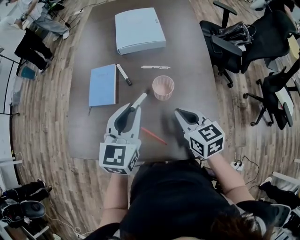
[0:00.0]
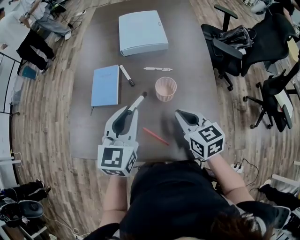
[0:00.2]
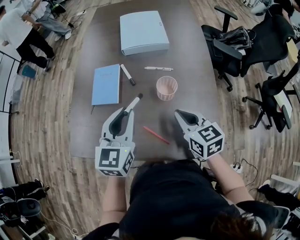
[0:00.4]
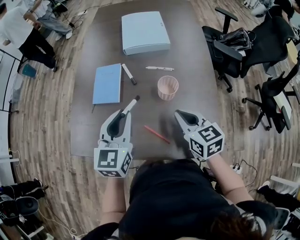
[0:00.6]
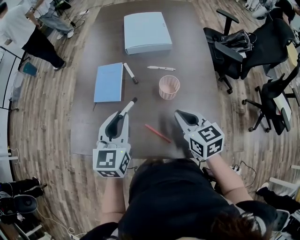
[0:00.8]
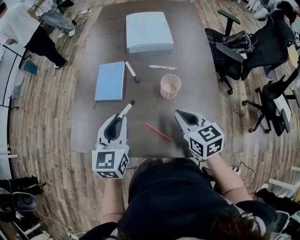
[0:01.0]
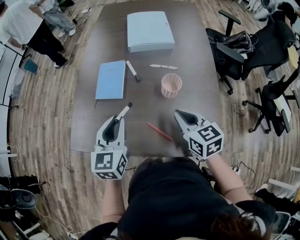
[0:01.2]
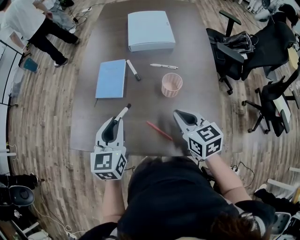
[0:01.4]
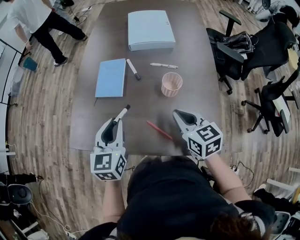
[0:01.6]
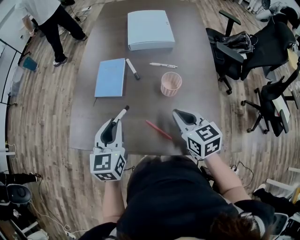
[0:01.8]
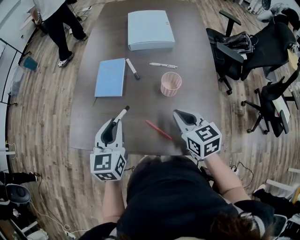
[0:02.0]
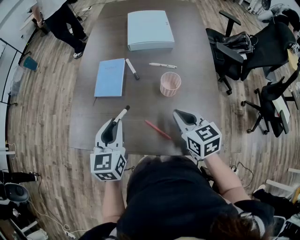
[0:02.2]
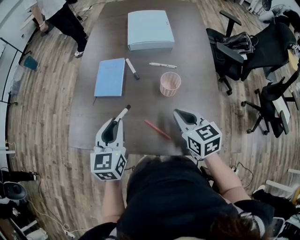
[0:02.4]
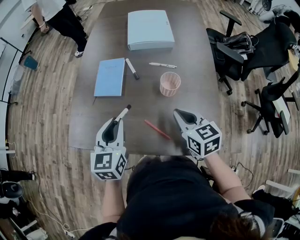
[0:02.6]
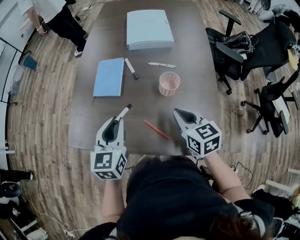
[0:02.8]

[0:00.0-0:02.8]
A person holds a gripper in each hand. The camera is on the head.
0:00.0 to 0:01.4: The right gripper moves some 5 cm, while the left gripper moves to the left, roughly 10 cm.
0:01.4 to 0:02.8: The grippers make only small movements.

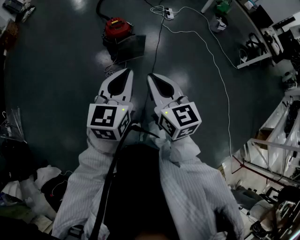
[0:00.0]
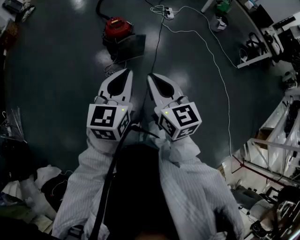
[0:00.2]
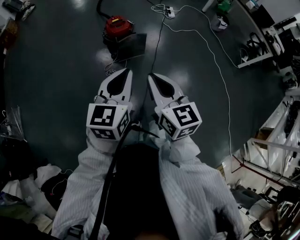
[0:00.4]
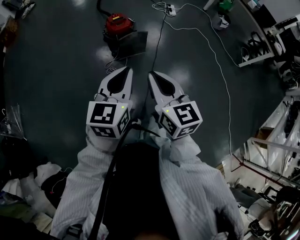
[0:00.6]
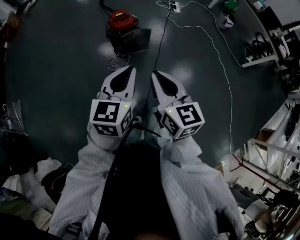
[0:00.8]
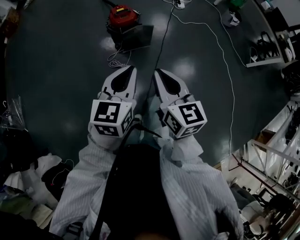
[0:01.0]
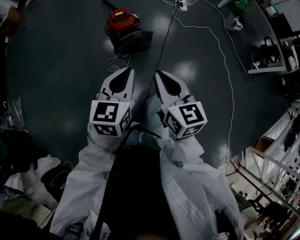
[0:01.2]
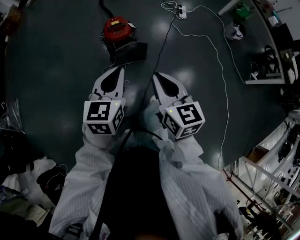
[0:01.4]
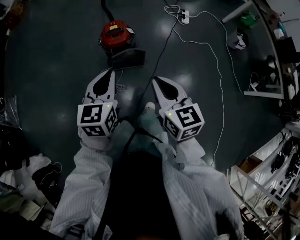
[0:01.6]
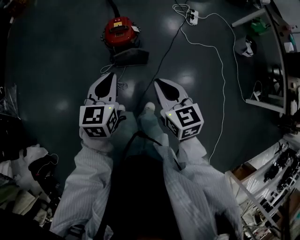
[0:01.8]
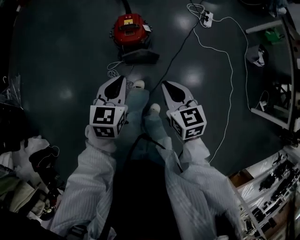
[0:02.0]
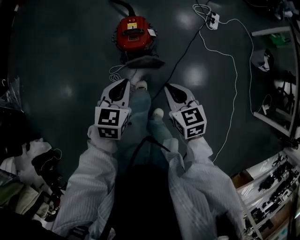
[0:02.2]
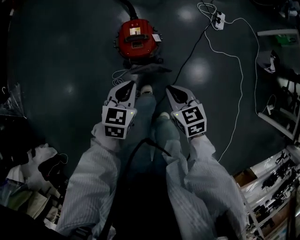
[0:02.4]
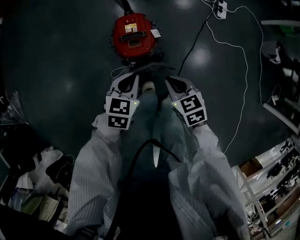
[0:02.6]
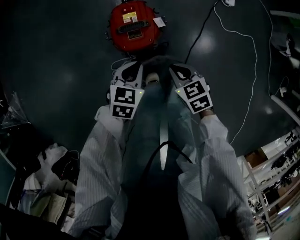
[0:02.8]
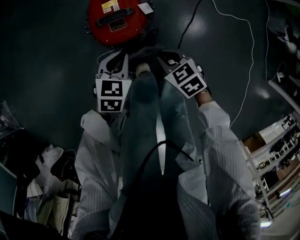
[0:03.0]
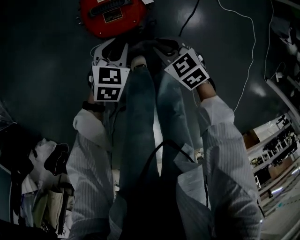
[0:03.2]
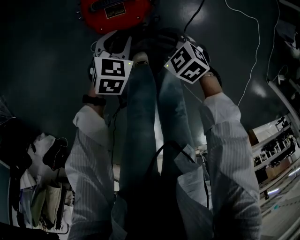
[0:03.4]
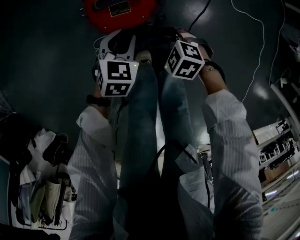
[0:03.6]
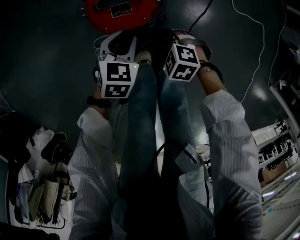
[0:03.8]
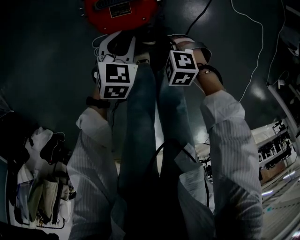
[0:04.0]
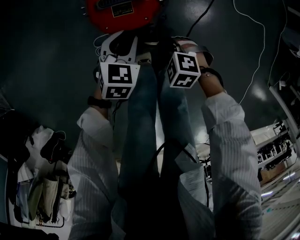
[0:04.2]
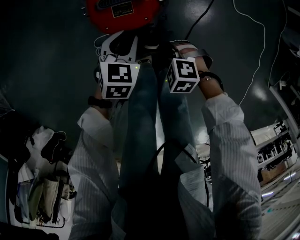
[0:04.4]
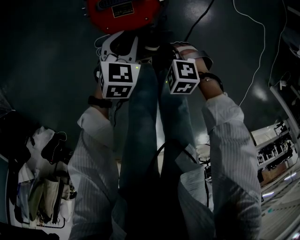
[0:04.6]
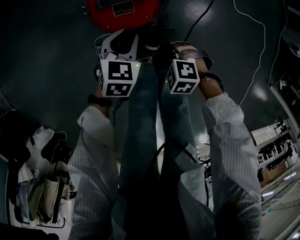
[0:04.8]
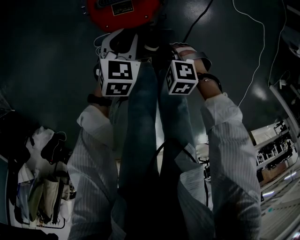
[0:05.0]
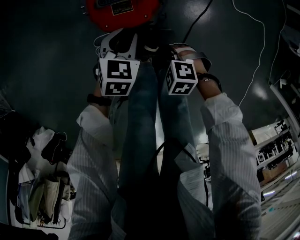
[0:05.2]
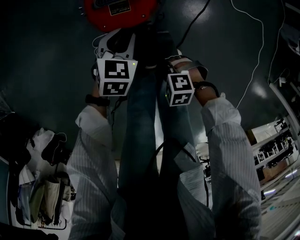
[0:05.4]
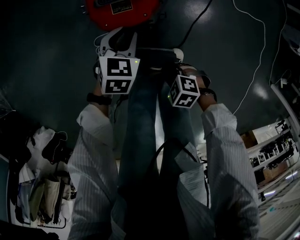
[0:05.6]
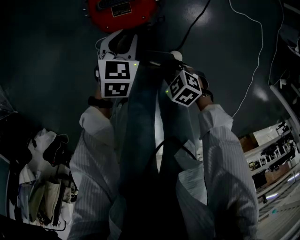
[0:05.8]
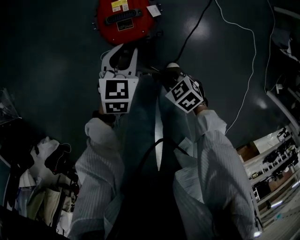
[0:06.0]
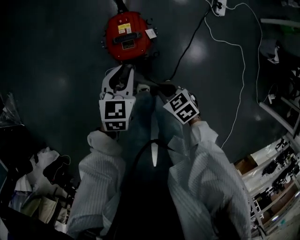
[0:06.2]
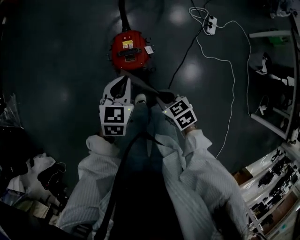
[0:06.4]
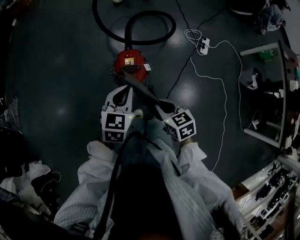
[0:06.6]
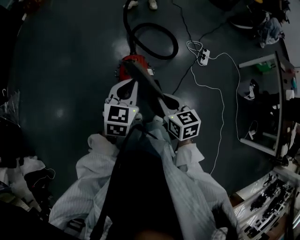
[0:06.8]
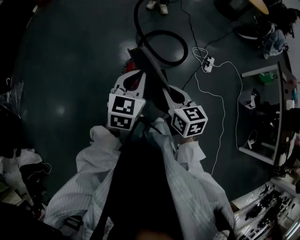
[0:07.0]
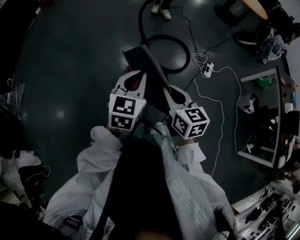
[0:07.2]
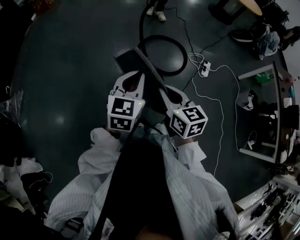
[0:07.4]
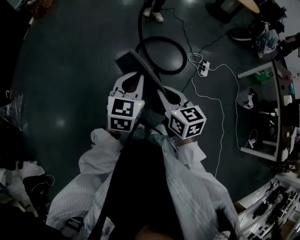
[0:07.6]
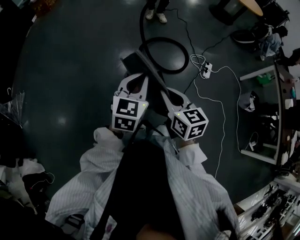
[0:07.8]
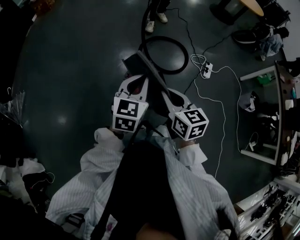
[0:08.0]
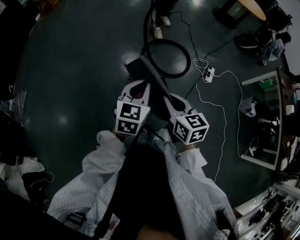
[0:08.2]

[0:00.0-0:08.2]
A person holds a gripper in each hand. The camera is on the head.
0:00.0 to 0:01.6: The right gripper moves forward and to the right, some 35 cm; the left gripper goes approximately 30 cm forward, and rotates roughly 20 degrees.
0:01.6 to 0:03.2: Both grippers move downward and forward, roughly 60 cm. The left gripper turns by some 30 degrees, and opens; the right gripper tips its fingers downward by approximately 30 degrees.
0:03.2 to 0:05.0: The right gripper travels downward by approximately 5 cm, swivels some 40 degrees, and opens, then closes once more.
0:05.0 to 0:06.6: The two grippers go roughly 40 cm upward. The right gripper swivels roughly 60 degrees. Meanwhile the left gripper changes its angle by some 20 degrees, and closes.
0:06.6 to 0:08.2: The two grippers go about 15 cm upward.

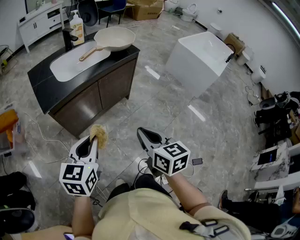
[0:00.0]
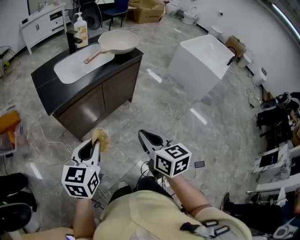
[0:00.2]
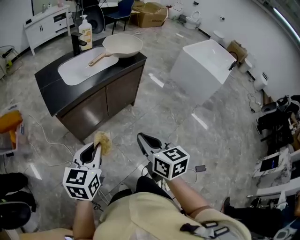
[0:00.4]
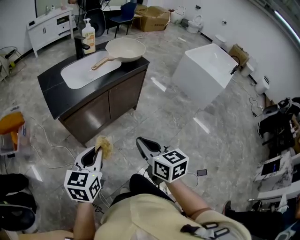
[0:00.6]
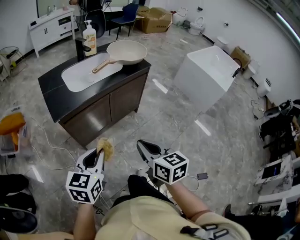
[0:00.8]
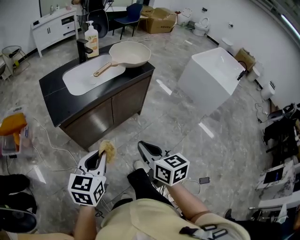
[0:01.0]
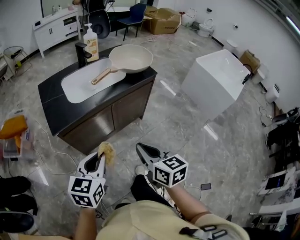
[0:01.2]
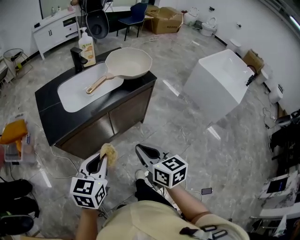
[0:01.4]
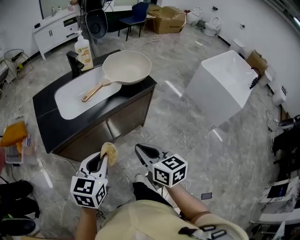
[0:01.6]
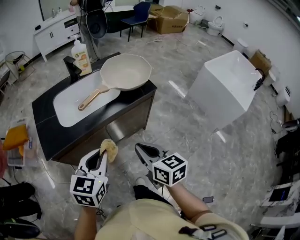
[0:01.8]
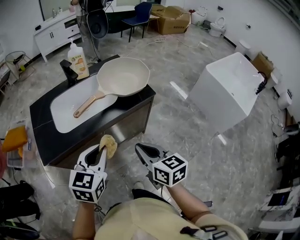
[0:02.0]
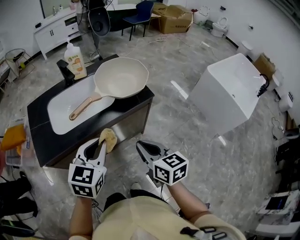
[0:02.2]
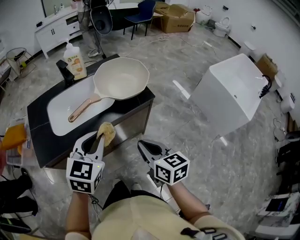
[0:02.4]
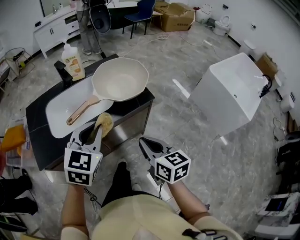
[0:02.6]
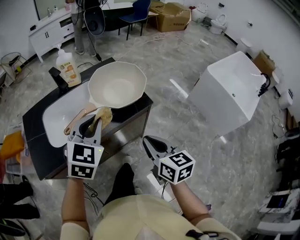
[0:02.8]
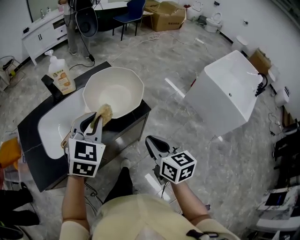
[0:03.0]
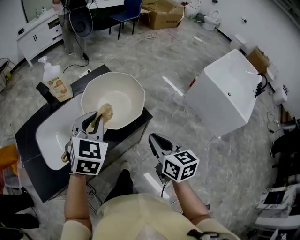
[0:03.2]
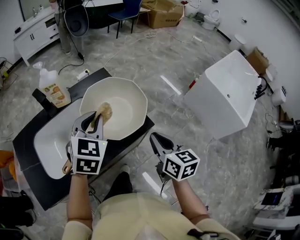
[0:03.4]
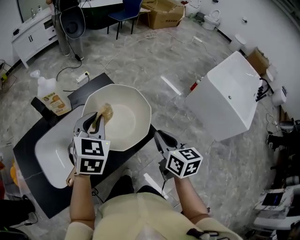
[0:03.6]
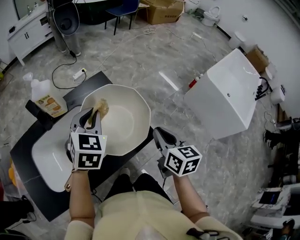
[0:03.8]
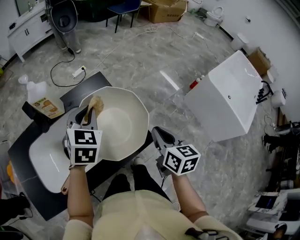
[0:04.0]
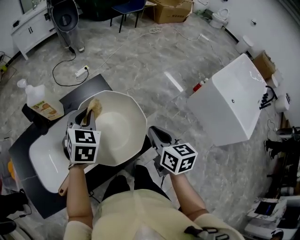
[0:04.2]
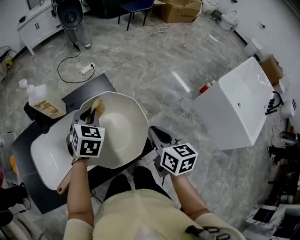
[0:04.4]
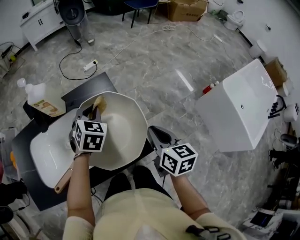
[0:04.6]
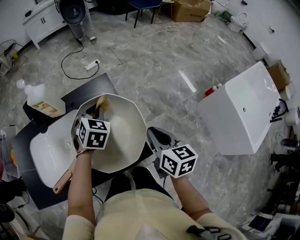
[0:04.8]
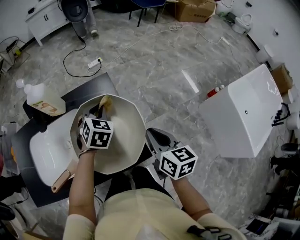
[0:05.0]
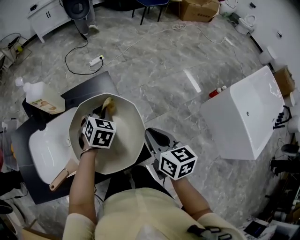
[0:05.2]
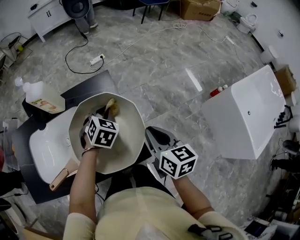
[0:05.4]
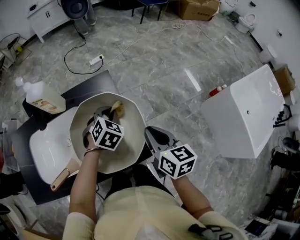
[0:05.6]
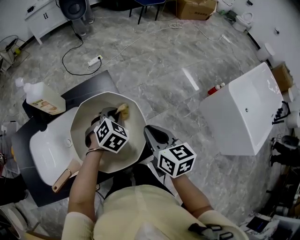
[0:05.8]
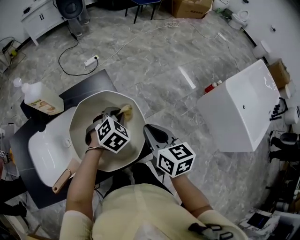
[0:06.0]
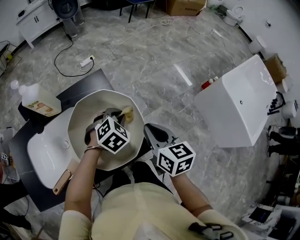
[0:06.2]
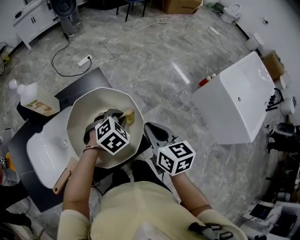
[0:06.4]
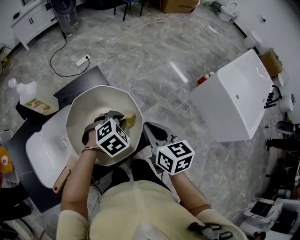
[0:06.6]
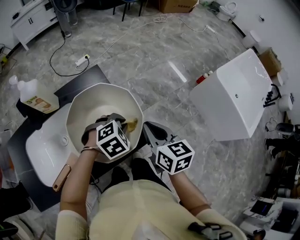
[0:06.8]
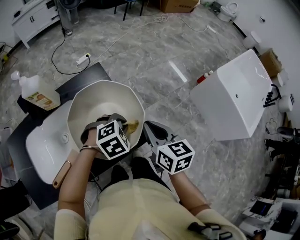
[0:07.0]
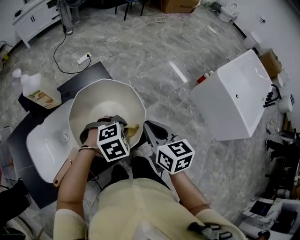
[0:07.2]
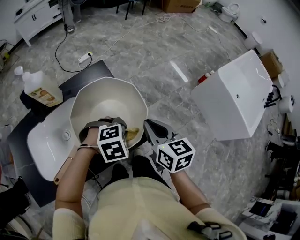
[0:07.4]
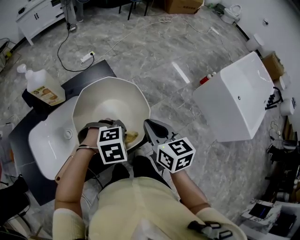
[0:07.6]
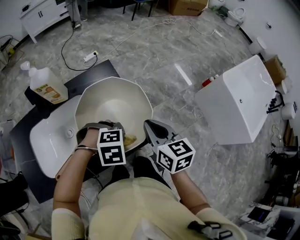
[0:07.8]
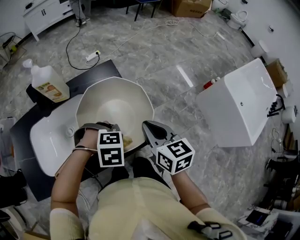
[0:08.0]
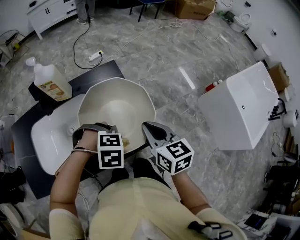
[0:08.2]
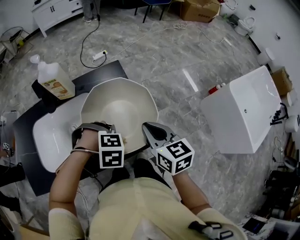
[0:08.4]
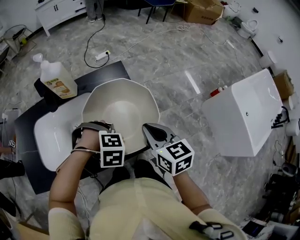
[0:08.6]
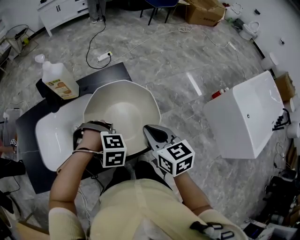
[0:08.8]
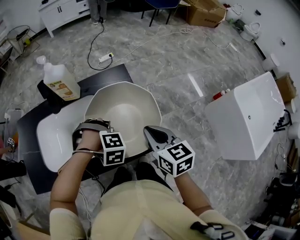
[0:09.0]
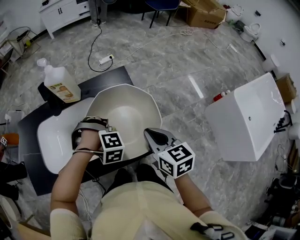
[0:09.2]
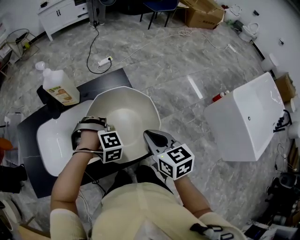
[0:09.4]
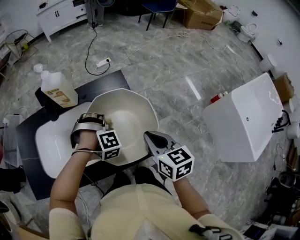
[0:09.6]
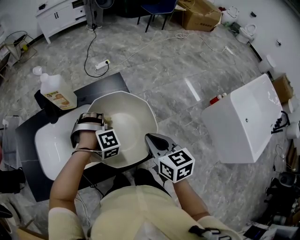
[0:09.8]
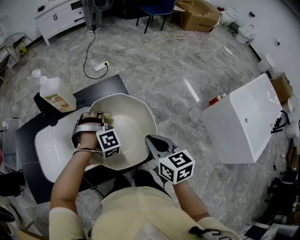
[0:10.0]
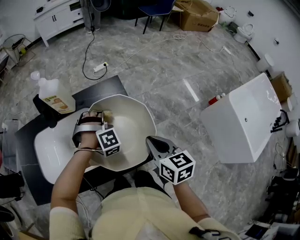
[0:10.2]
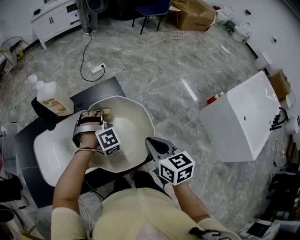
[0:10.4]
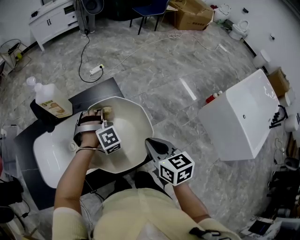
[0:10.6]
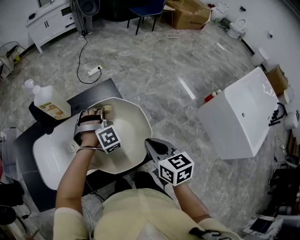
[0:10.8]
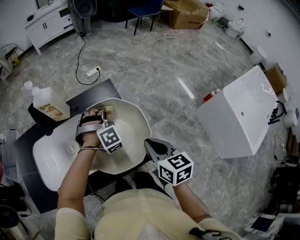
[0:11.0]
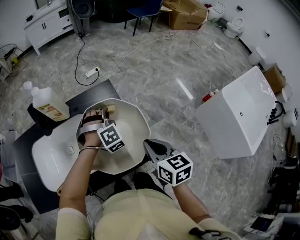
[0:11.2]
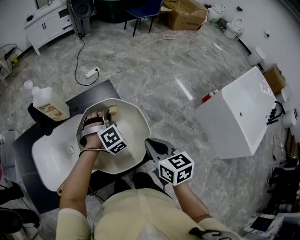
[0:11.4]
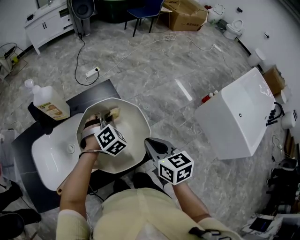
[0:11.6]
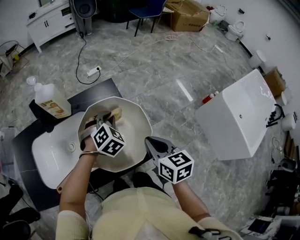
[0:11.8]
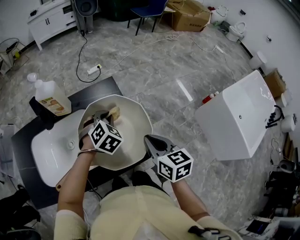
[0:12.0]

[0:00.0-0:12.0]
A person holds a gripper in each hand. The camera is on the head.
0:00.0 to 0:01.6: The two grippers go approximately 20 cm forward.
0:01.6 to 0:03.0: The grippers both shift forward and to the right by some 30 cm. The left gripper changes its angle by about 30 degrees.
0:03.0 to 0:04.4: Both grippers travel together forward, some 30 cm. The left gripper changes its angle by roughly 20 degrees.
0:04.4 to 0:06.0: The left gripper goes roughly 15 cm to the right and downward, and rotates roughly 20 degrees.
0:06.0 to 0:07.6: The right gripper ends up some 5 cm from where it was, while the left gripper ends up about 15 cm from where it was, and swivels roughly 40 degrees.
0:07.6 to 0:09.0: The left gripper moves approximately 10 cm, and rotates some 30 degrees.
0:09.0 to 0:10.4: The left gripper ends up roughly 15 cm from where it was, and points its fingers about 30 degrees further upward.
0:10.4 to 0:12.0: The left gripper moves approximately 5 cm, and rotates around the line of its fingers by approximately 40 degrees, counterclockwise from behind.
